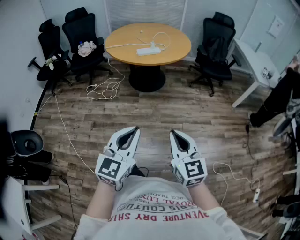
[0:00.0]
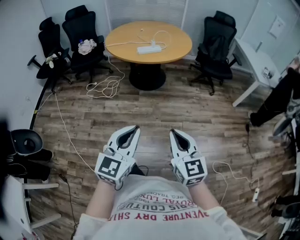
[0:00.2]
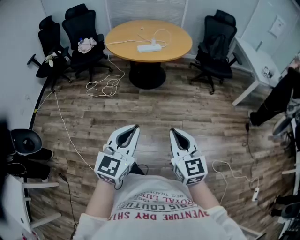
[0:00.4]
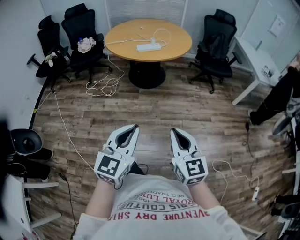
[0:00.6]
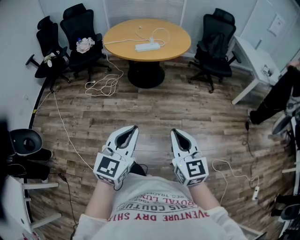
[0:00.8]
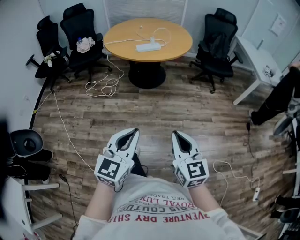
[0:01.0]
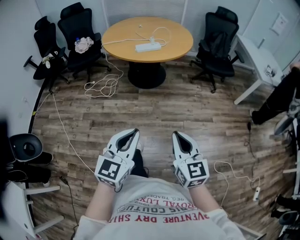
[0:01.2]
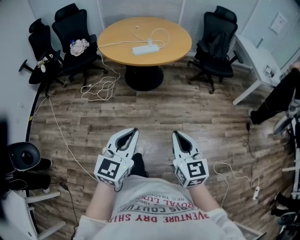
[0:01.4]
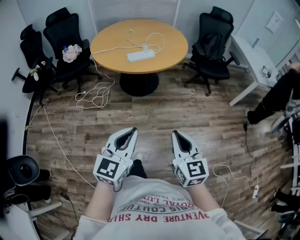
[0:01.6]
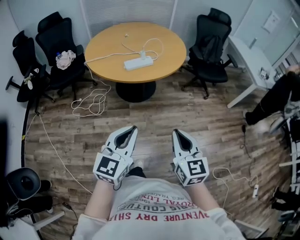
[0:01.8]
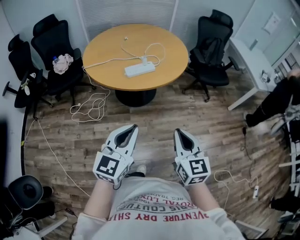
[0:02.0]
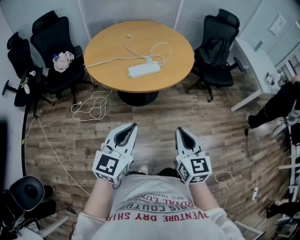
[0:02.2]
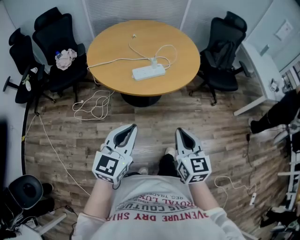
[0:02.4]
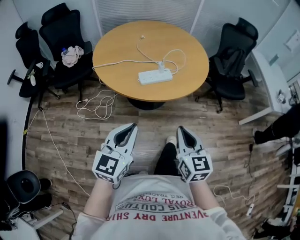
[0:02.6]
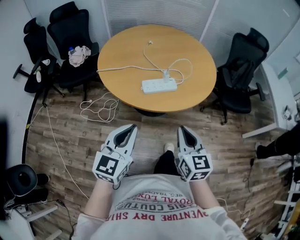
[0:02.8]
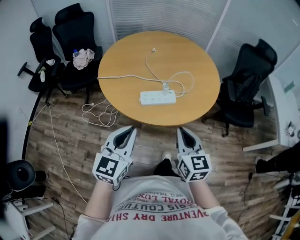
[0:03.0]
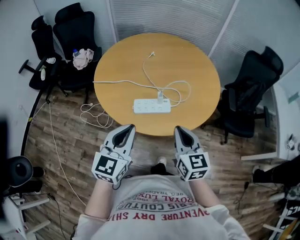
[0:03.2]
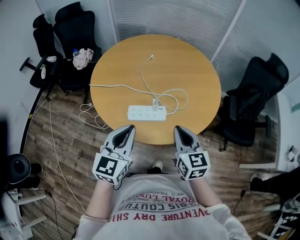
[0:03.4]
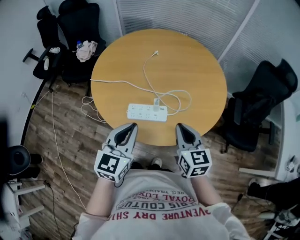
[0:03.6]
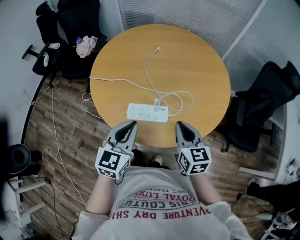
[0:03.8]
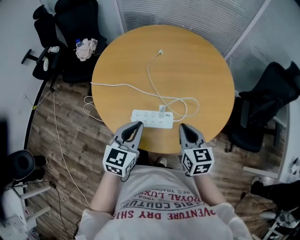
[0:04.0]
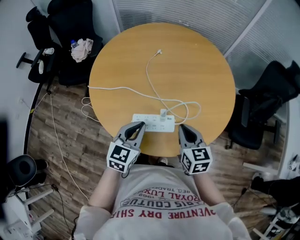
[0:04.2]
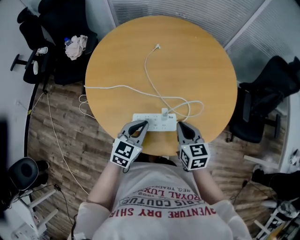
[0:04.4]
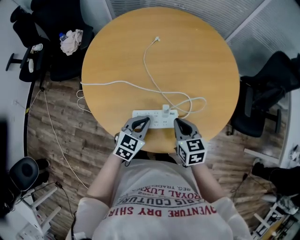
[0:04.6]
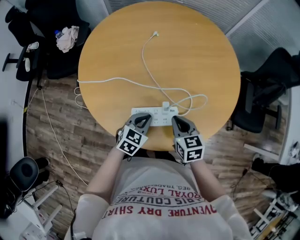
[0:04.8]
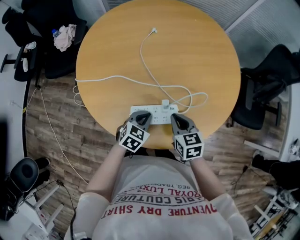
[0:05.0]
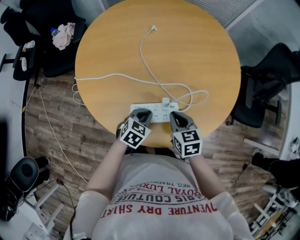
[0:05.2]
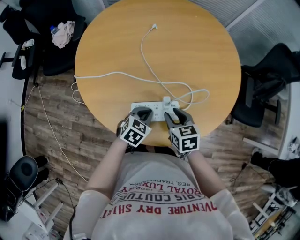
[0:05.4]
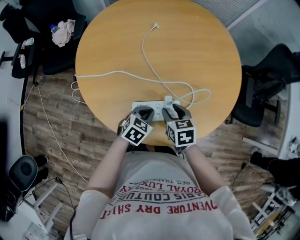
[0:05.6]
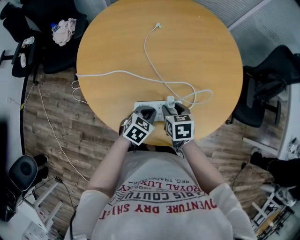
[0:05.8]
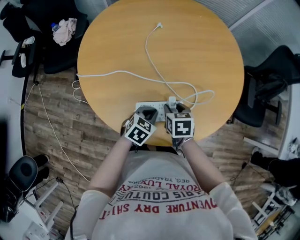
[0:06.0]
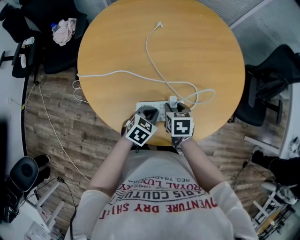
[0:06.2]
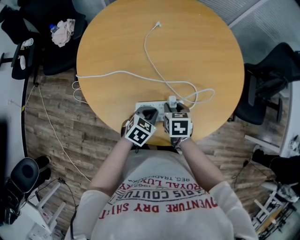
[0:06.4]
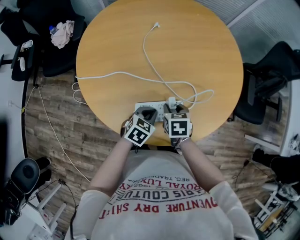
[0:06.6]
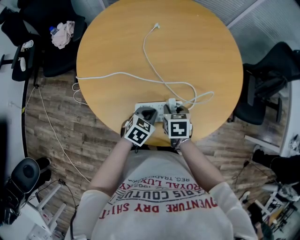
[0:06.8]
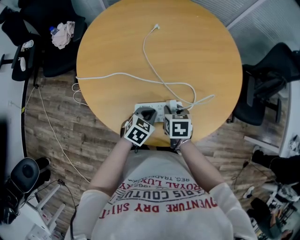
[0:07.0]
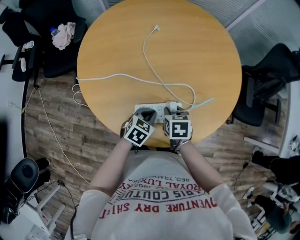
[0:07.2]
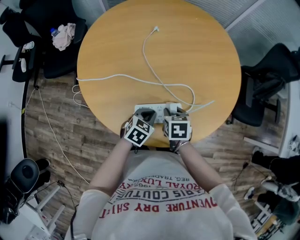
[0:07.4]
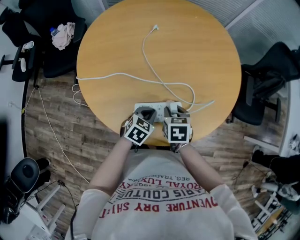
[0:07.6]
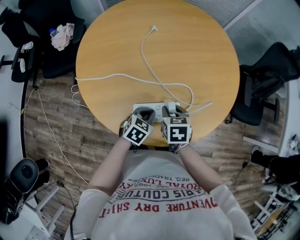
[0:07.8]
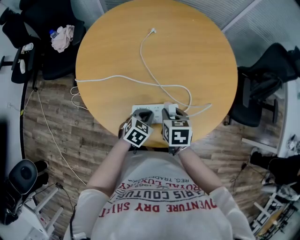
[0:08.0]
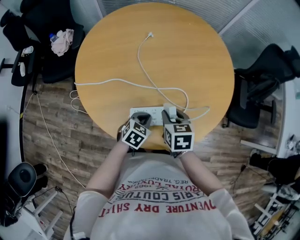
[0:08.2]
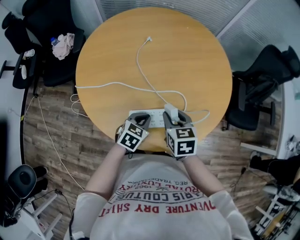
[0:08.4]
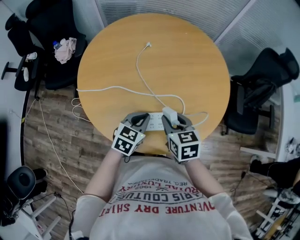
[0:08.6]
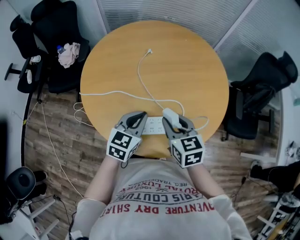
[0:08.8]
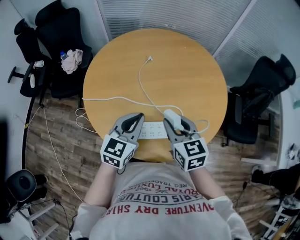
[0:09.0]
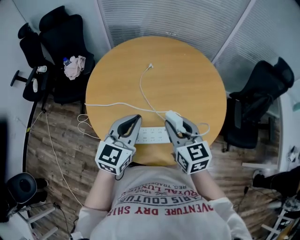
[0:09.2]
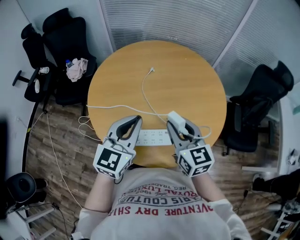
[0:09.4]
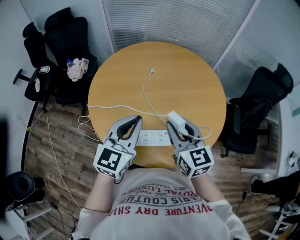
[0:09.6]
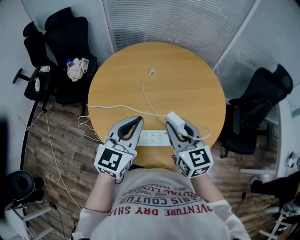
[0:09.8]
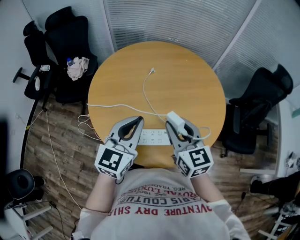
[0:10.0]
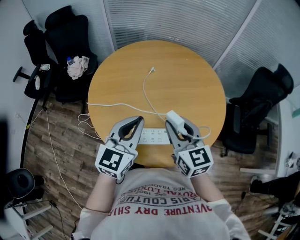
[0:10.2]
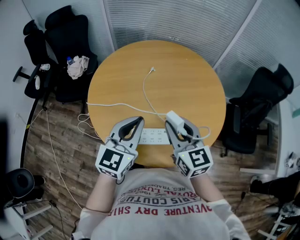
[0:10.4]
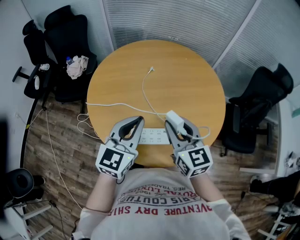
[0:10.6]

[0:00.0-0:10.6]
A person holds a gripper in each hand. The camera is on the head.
0:00.0 to 0:01.6: Both grippers travel together forward, about 15 cm.
0:01.6 to 0:03.0: Both grippers travel together forward, roughly 40 cm.
0:03.0 to 0:04.6: The two grippers go approximately 30 cm forward and downward. The right gripper turns by some 30 degrees, while the left gripper rotates roughly 30 degrees.
0:04.6 to 0:06.0: The two grippers go approximately 10 cm downward. The right gripper turns by roughly 20 degrees, and opens up.
0:06.0 to 0:07.6: The grippers move only a little.
0:07.6 to 0:09.0: The two grippers go approximately 20 cm upward. The left gripper tips its fingers upward by approximately 30 degrees, while the right gripper points its fingers approximately 30 degrees further upward.
0:09.0 to 0:10.6: Both grippers travel together upward, approximately 10 cm.

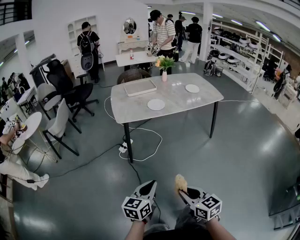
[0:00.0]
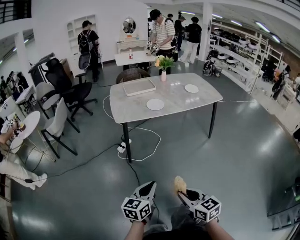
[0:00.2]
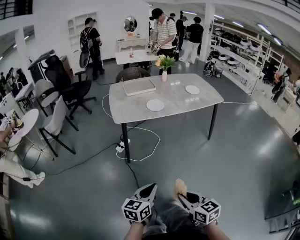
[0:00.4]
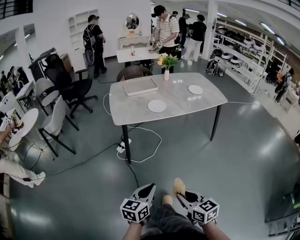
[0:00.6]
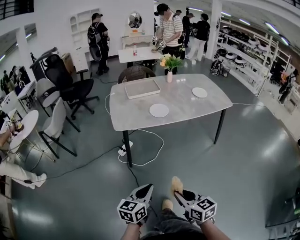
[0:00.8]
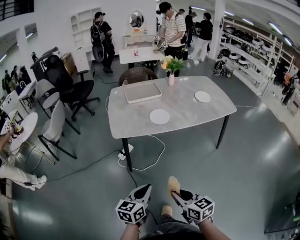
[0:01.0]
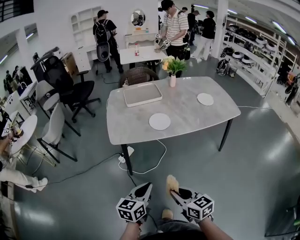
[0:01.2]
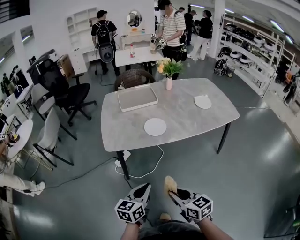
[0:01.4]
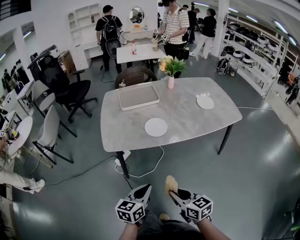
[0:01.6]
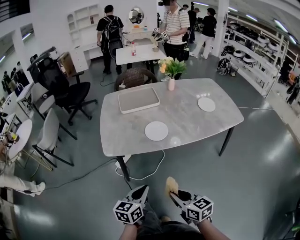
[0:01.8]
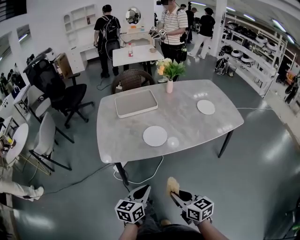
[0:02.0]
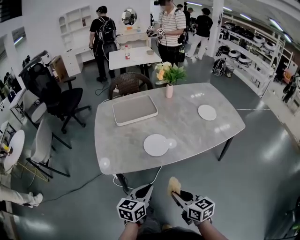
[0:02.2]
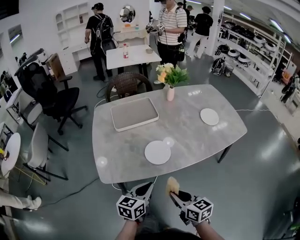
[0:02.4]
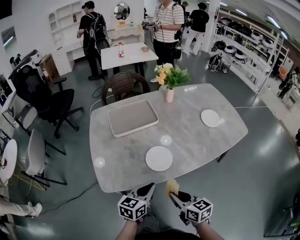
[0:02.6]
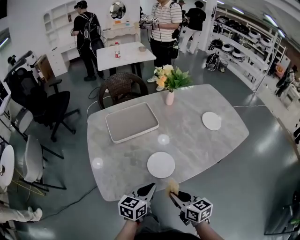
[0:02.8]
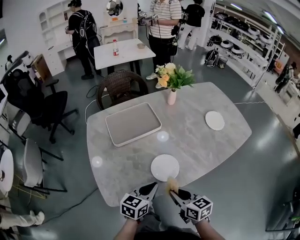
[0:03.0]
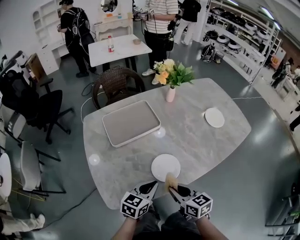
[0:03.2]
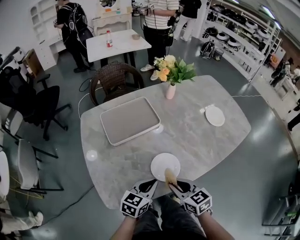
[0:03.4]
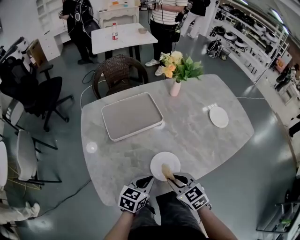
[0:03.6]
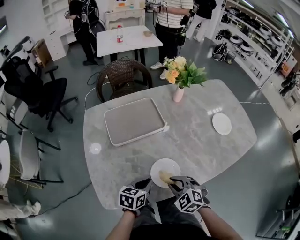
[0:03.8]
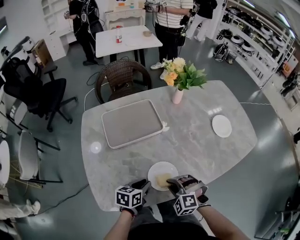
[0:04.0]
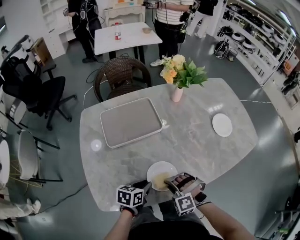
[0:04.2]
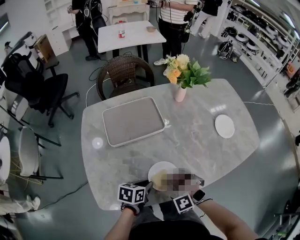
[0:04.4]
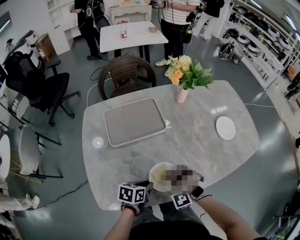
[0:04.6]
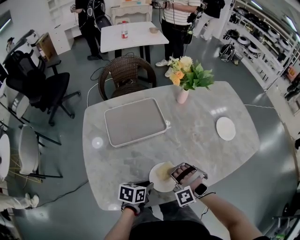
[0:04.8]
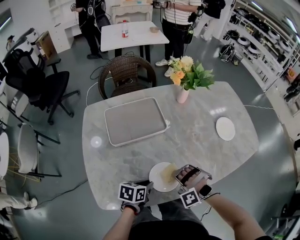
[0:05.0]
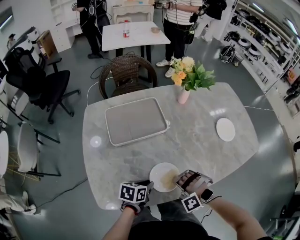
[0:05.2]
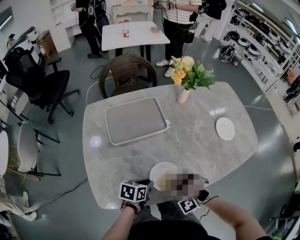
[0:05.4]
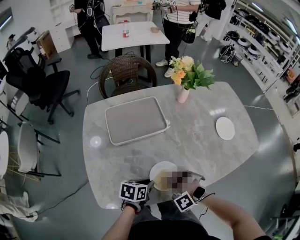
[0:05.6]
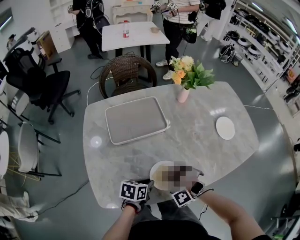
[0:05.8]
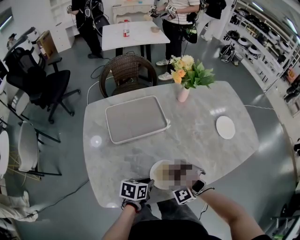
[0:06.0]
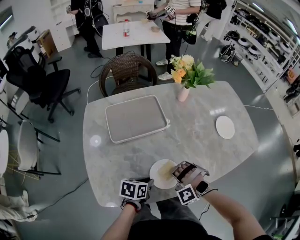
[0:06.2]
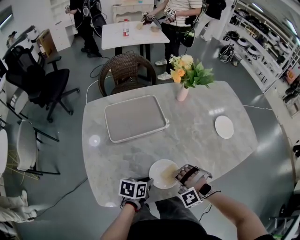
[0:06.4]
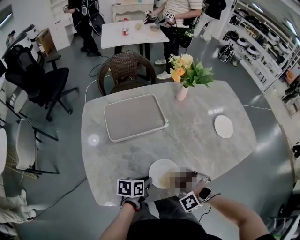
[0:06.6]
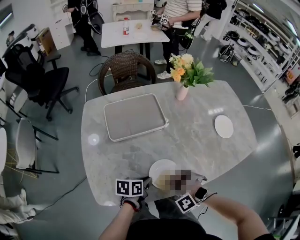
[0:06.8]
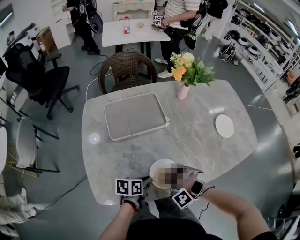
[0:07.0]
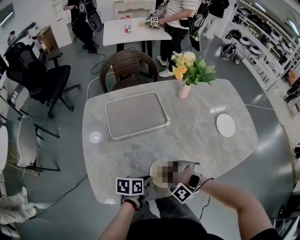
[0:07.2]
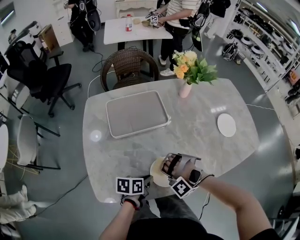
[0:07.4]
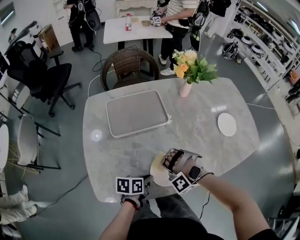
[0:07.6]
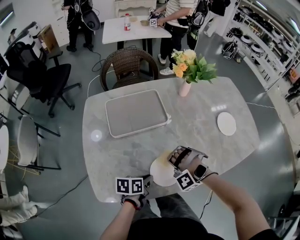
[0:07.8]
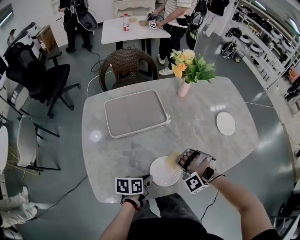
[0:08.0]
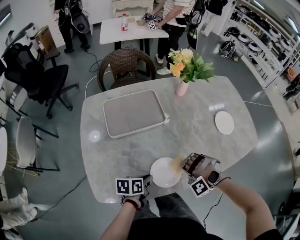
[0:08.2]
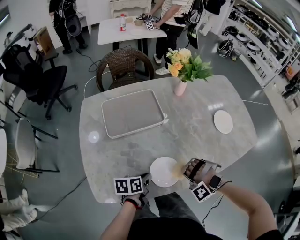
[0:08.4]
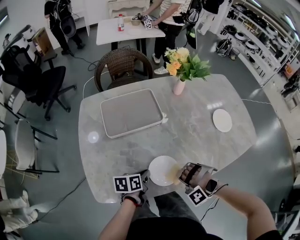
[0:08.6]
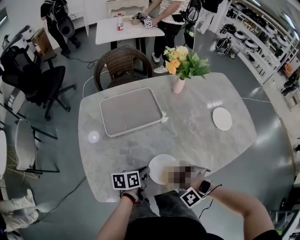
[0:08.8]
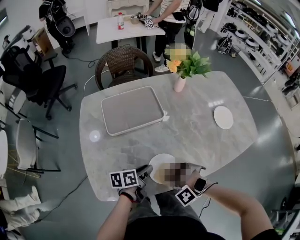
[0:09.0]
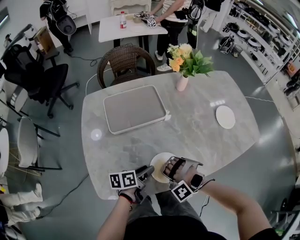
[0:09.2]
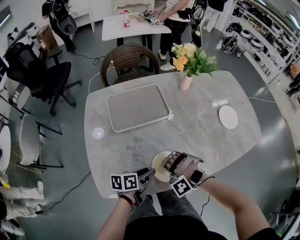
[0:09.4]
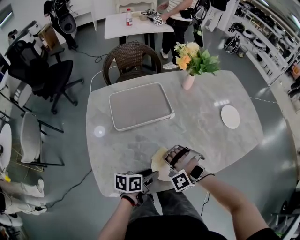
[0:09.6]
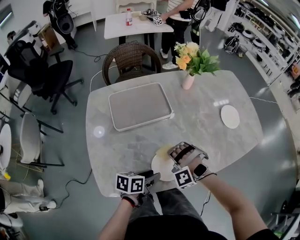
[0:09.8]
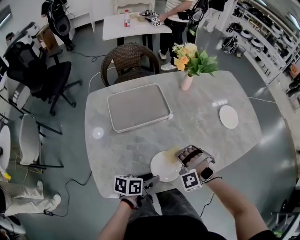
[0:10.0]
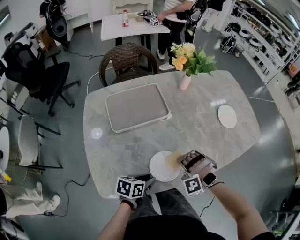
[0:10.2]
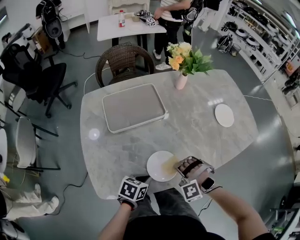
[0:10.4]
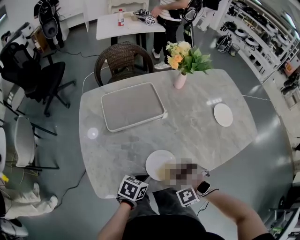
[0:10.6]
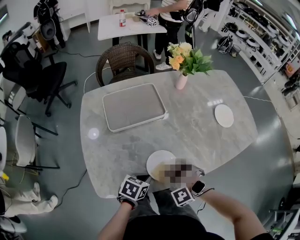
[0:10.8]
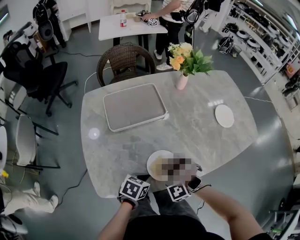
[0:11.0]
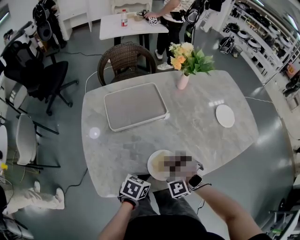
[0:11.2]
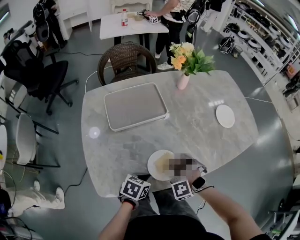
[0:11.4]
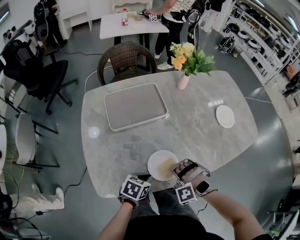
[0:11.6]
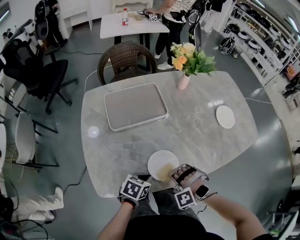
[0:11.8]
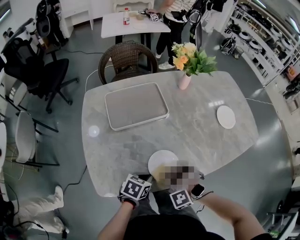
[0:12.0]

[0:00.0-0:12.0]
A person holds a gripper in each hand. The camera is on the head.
0:00.0 to 0:01.6: The left gripper changes place by approximately 30 cm.
0:01.6 to 0:03.0: The left gripper moves approximately 30 cm, and swivels about 20 degrees.
0:03.0 to 0:04.4: The left gripper moves downward, some 10 cm, and rotates roughly 30 degrees.
0:09.0 to 0:10.4: The left gripper moves some 5 cm, rotates roughly 40 degrees, and closes up.

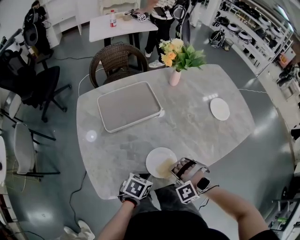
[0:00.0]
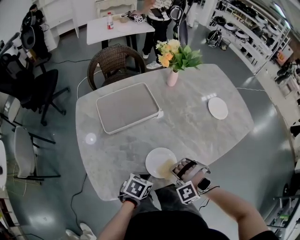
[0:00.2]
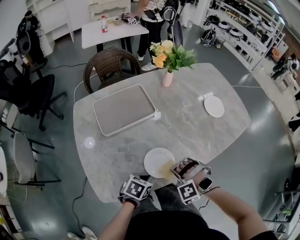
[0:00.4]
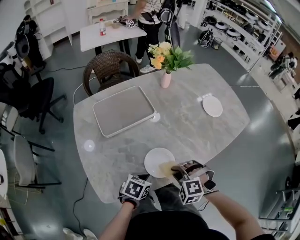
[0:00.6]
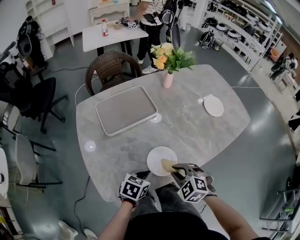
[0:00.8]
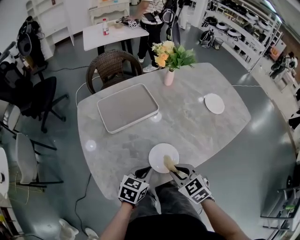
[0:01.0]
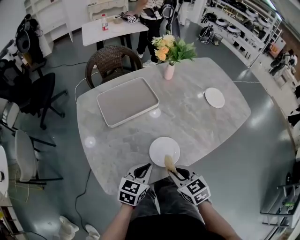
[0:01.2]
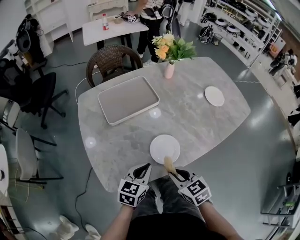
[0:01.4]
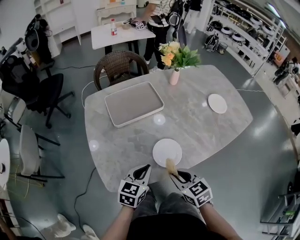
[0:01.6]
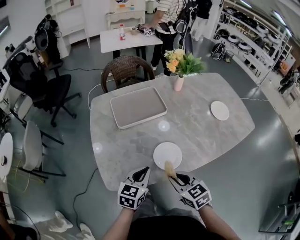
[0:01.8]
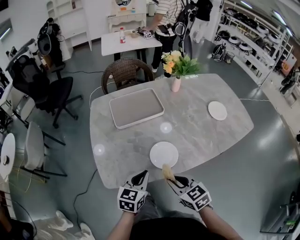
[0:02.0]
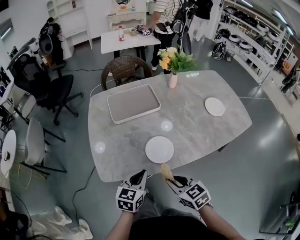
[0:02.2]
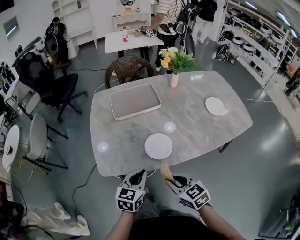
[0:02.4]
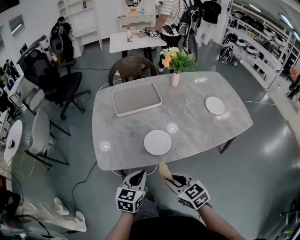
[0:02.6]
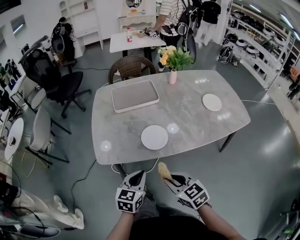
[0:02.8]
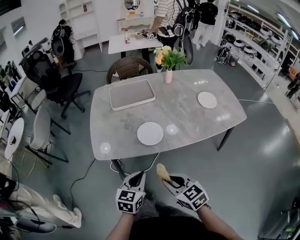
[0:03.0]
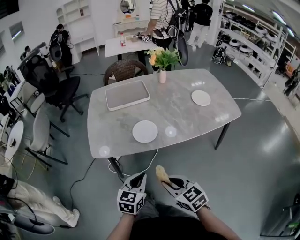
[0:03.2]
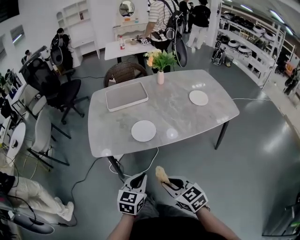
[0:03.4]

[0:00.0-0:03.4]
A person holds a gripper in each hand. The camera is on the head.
0:00.0 to 0:01.6: The left gripper heads upward, covering roughly 10 cm, and rotates some 30 degrees.
0:01.6 to 0:03.4: The left gripper shifts by about 25 cm.
